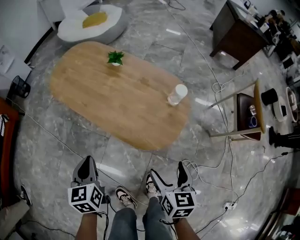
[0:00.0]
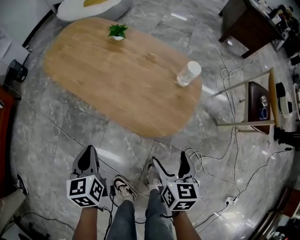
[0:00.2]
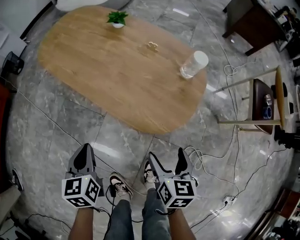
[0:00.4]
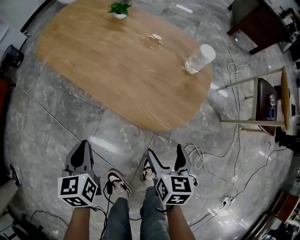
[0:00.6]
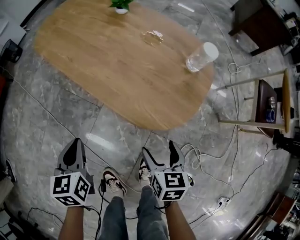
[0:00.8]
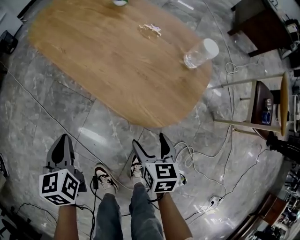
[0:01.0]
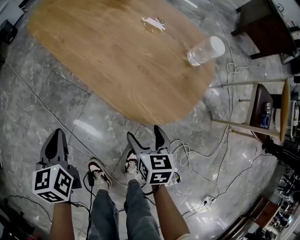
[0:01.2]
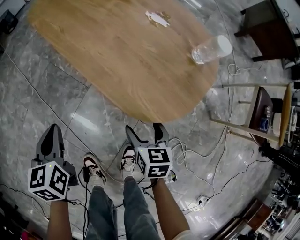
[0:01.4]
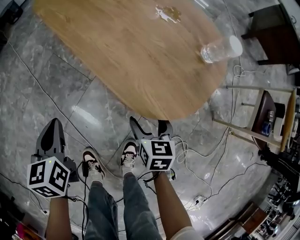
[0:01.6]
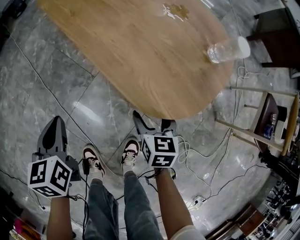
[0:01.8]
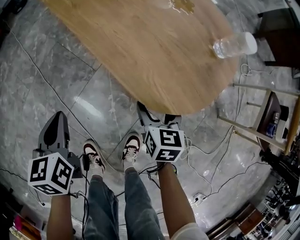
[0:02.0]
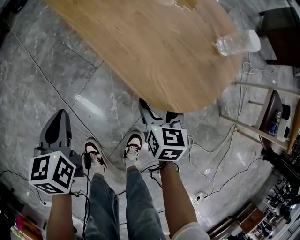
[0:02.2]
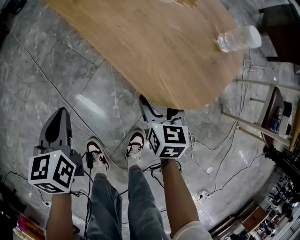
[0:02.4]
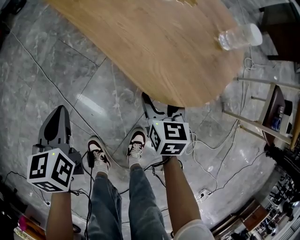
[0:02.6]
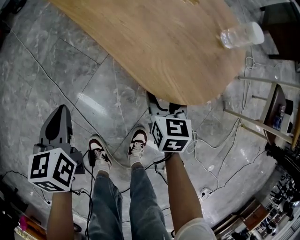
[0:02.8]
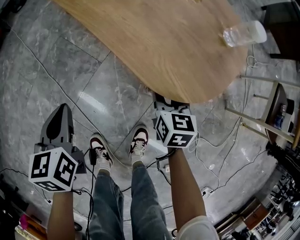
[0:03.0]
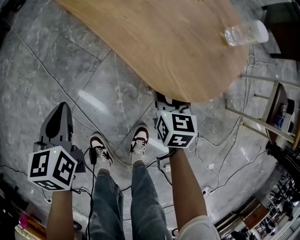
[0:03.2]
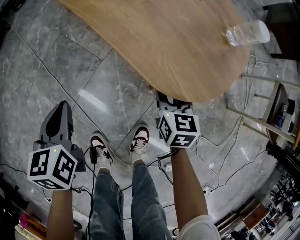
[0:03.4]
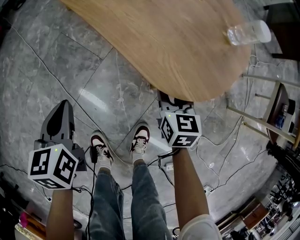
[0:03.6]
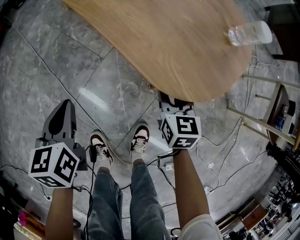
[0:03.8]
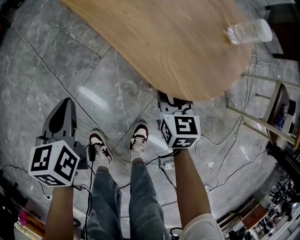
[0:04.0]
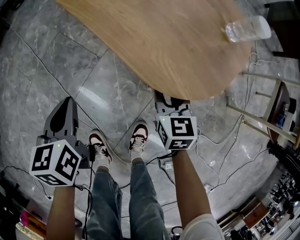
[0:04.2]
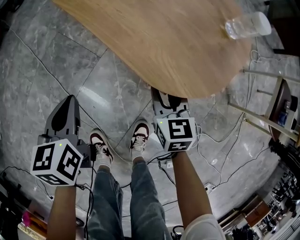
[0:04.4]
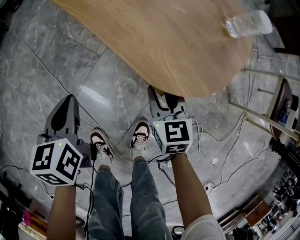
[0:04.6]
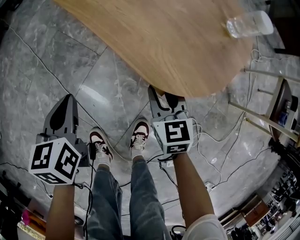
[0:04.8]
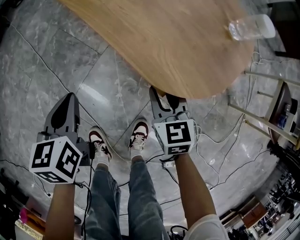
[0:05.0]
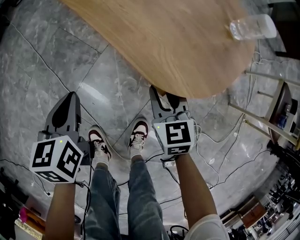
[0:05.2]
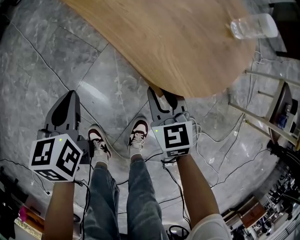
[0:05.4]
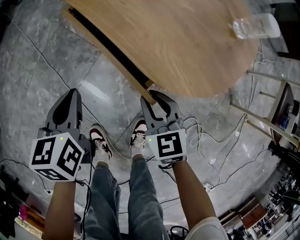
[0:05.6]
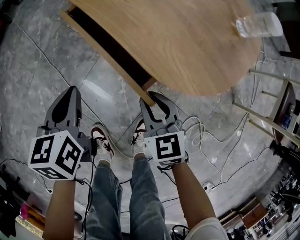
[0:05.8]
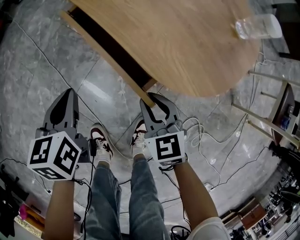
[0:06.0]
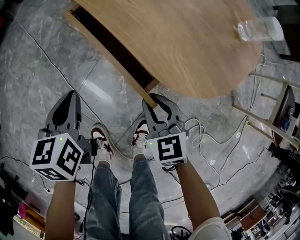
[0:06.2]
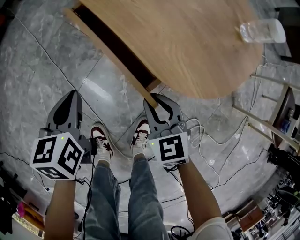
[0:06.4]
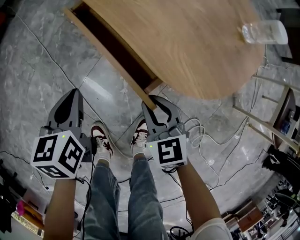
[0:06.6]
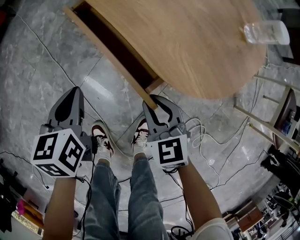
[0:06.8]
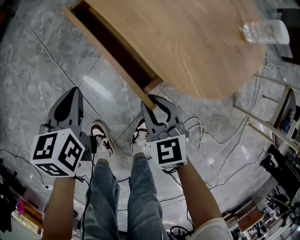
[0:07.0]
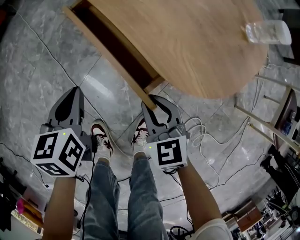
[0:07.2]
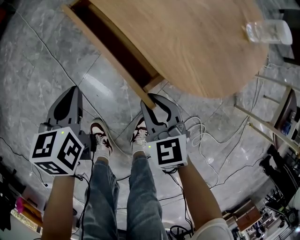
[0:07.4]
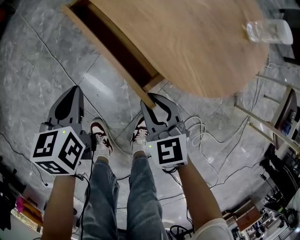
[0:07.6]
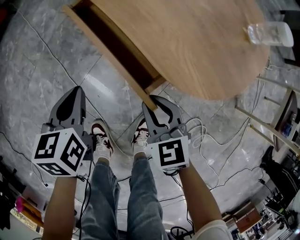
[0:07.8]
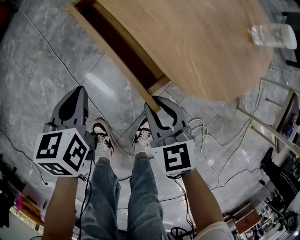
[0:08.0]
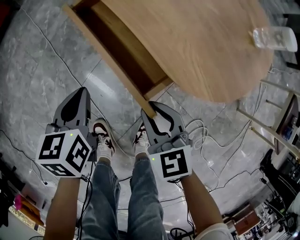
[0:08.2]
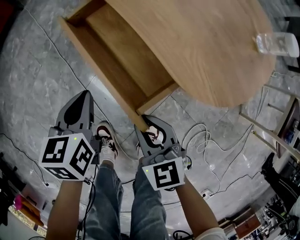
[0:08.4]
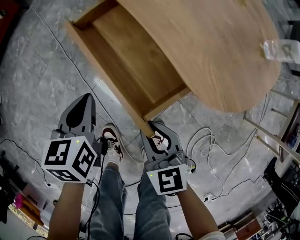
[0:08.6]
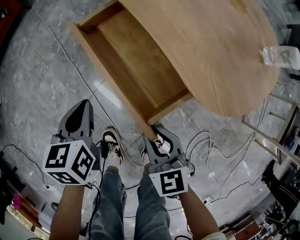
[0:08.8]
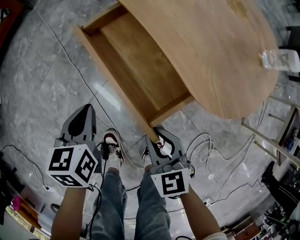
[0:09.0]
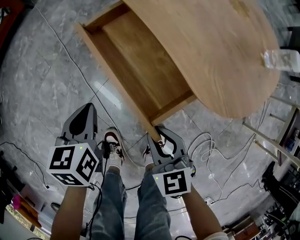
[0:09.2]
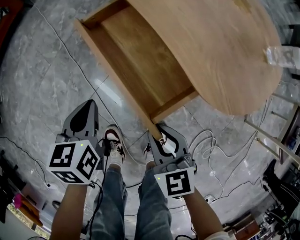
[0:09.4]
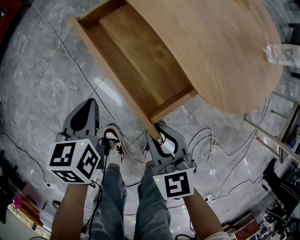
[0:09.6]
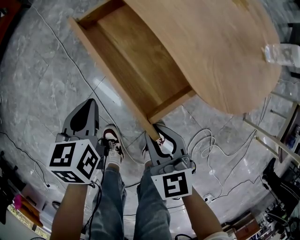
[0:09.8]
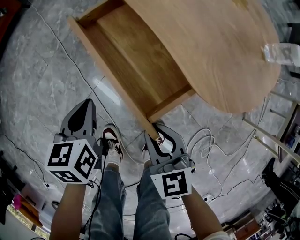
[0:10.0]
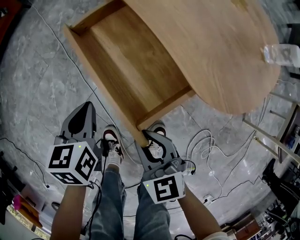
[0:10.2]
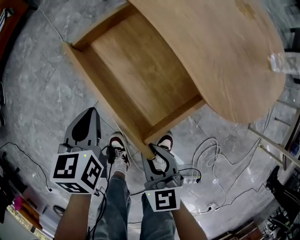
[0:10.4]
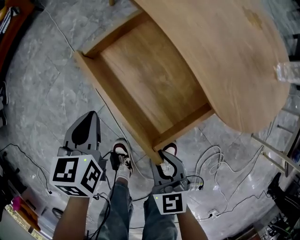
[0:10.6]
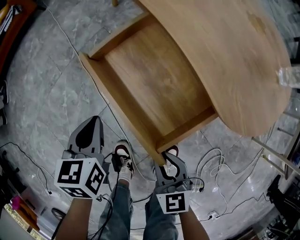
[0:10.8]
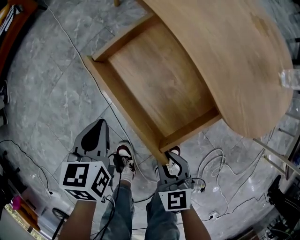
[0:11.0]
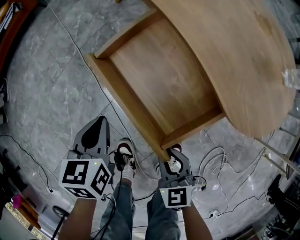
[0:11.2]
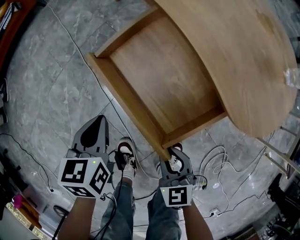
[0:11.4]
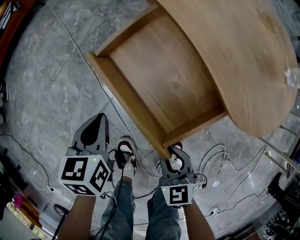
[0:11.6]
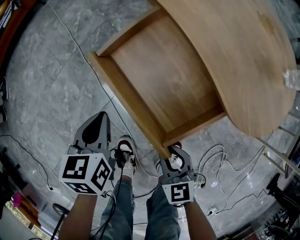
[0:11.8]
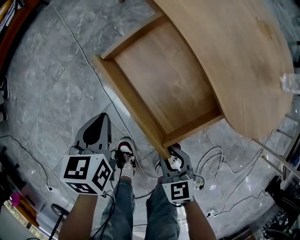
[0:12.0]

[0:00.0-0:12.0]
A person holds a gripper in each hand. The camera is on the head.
0:00.0 to 0:01.6: The left gripper is displaced downward by some 15 cm. Meanwhile the right gripper shifts approximately 25 cm downward, and rotates approximately 20 degrees.
0:01.6 to 0:03.0: The right gripper closes its fingers.
0:03.0 to 0:04.4: The grippers stay close to where they were, moving slightly.
0:04.4 to 0:06.0: The right gripper moves to the left, approximately 5 cm.
0:06.0 to 0:07.6: The grippers move only a little.
0:07.6 to 0:09.0: The two grippers go approximately 5 cm to the left.
0:09.0 to 0:10.4: The right gripper changes place by some 5 cm.
0:10.4 to 0:12.0: The right gripper heads downward, covering approximately 5 cm.

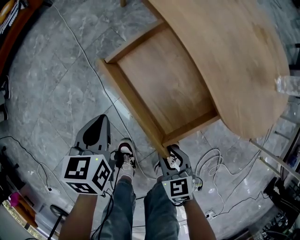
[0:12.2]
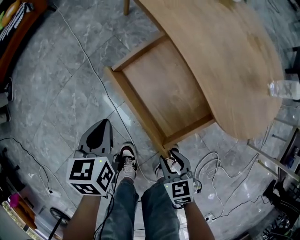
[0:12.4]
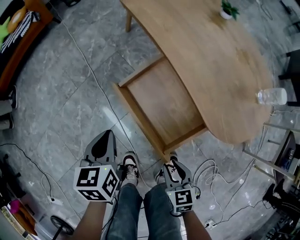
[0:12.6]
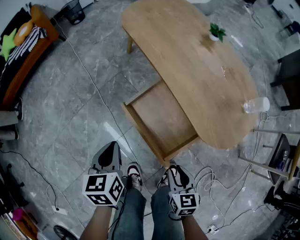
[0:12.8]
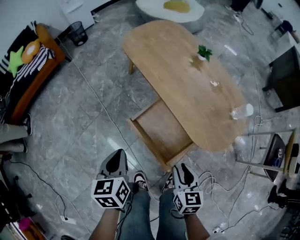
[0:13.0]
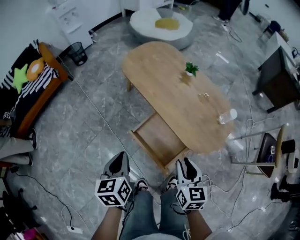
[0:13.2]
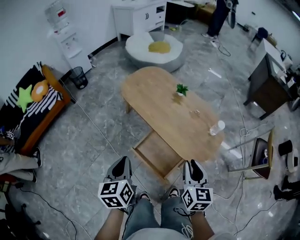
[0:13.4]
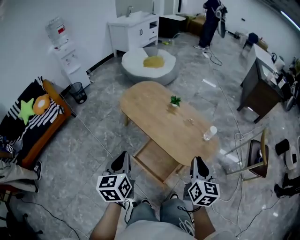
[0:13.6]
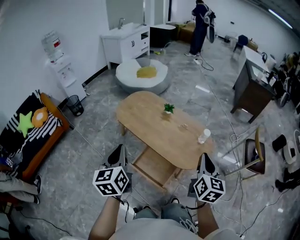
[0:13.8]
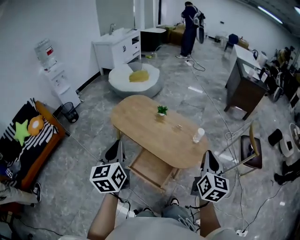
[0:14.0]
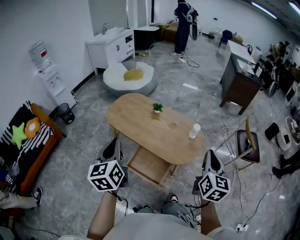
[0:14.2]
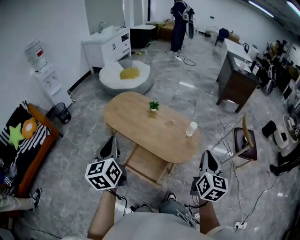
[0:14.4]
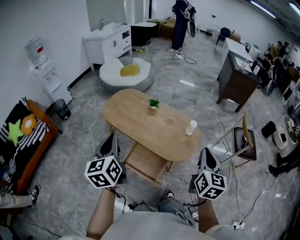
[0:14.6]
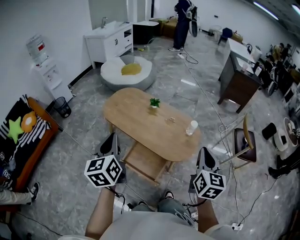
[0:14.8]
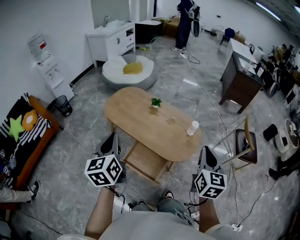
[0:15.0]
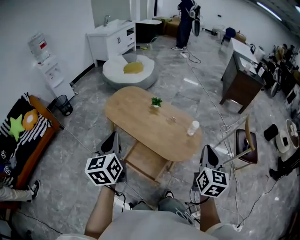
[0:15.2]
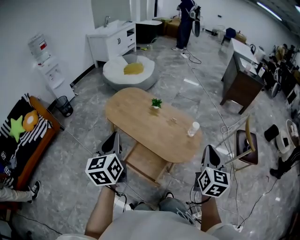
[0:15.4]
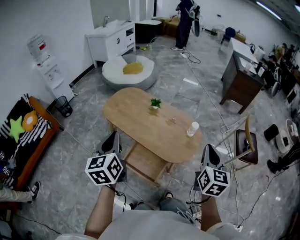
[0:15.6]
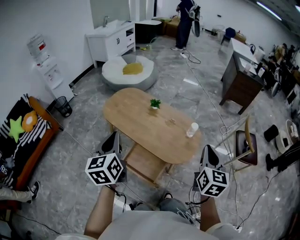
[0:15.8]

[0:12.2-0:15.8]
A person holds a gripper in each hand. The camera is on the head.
0:12.2 to 0:14.0: The two grippers go some 60 cm upward. The right gripper tilts its fingers some 40 degrees upward. Meanwhile the left gripper points its fingers about 40 degrees further upward.
0:14.0 to 0:15.8: The grippers make only small movements.

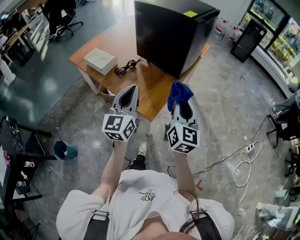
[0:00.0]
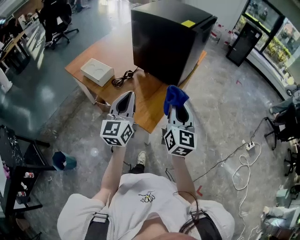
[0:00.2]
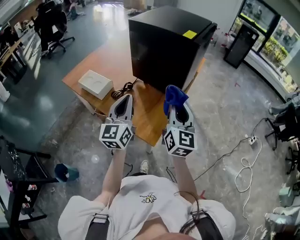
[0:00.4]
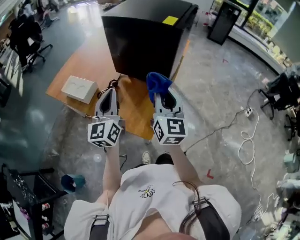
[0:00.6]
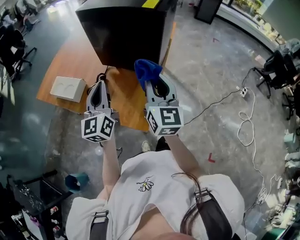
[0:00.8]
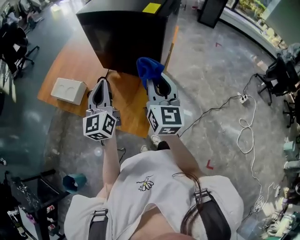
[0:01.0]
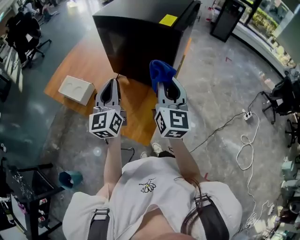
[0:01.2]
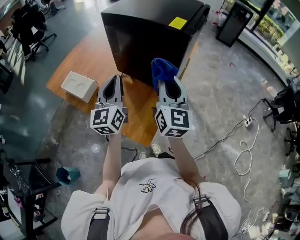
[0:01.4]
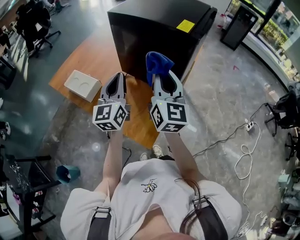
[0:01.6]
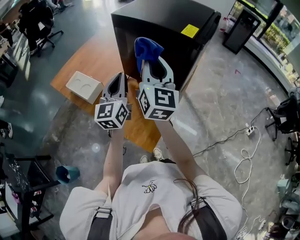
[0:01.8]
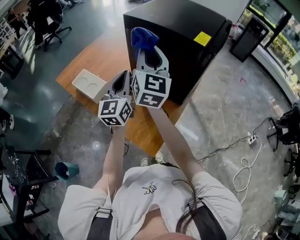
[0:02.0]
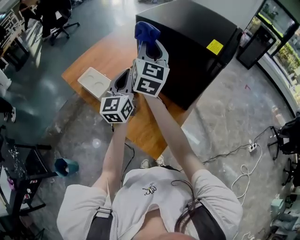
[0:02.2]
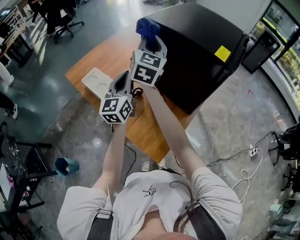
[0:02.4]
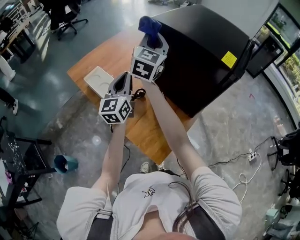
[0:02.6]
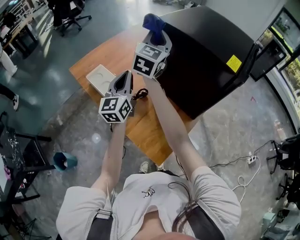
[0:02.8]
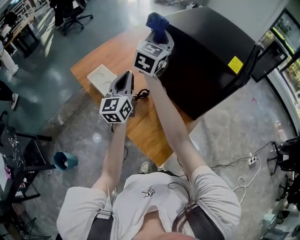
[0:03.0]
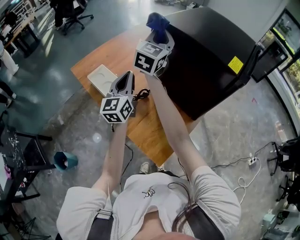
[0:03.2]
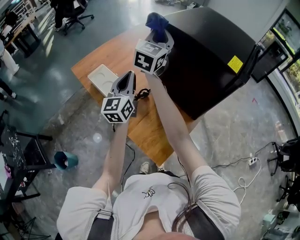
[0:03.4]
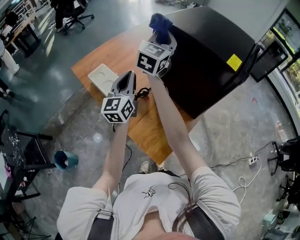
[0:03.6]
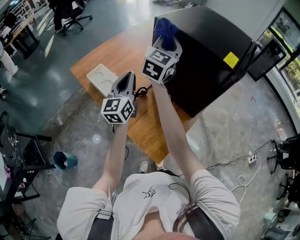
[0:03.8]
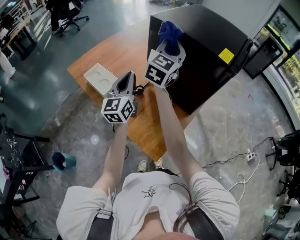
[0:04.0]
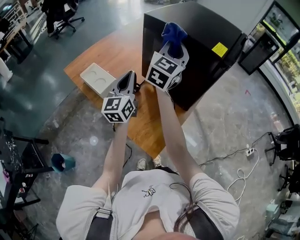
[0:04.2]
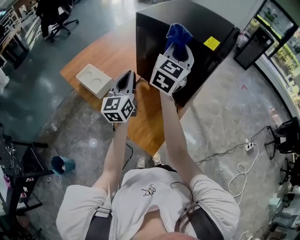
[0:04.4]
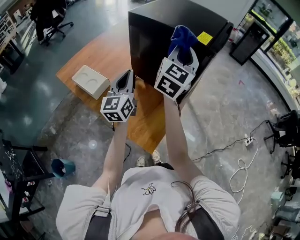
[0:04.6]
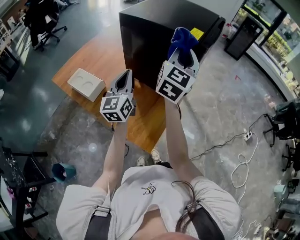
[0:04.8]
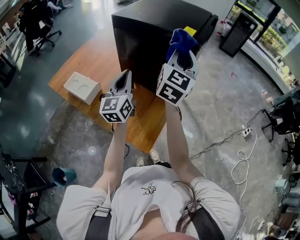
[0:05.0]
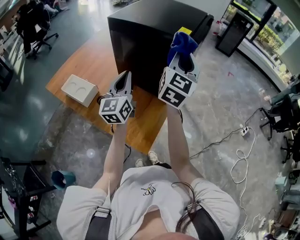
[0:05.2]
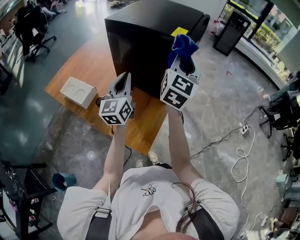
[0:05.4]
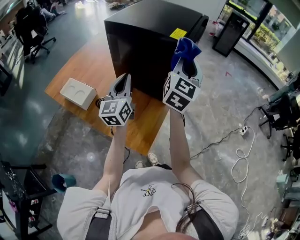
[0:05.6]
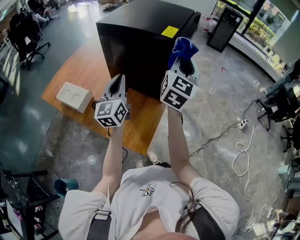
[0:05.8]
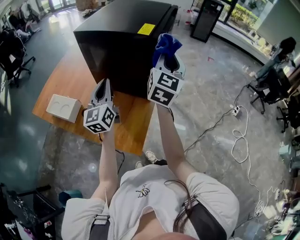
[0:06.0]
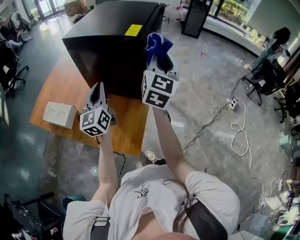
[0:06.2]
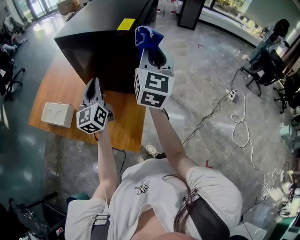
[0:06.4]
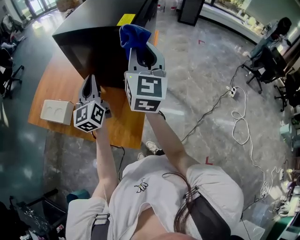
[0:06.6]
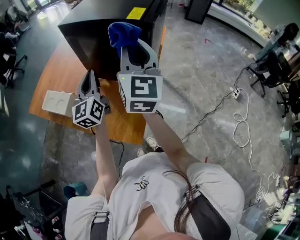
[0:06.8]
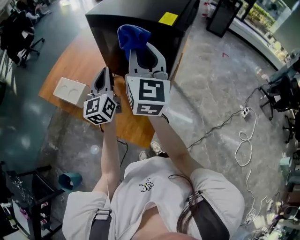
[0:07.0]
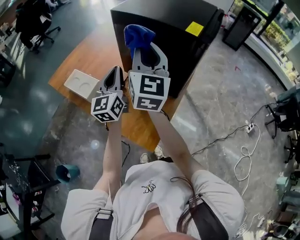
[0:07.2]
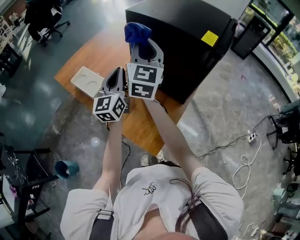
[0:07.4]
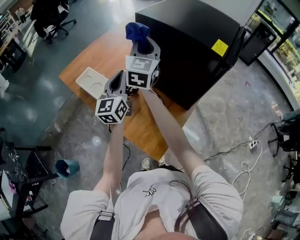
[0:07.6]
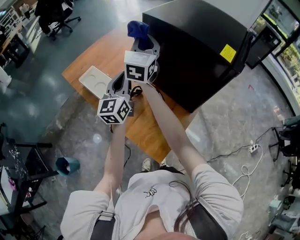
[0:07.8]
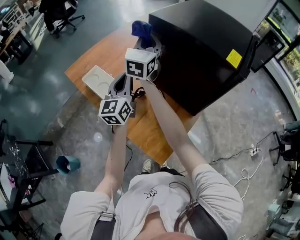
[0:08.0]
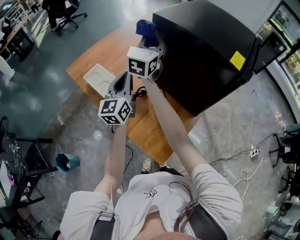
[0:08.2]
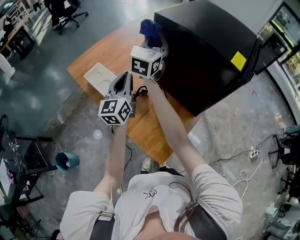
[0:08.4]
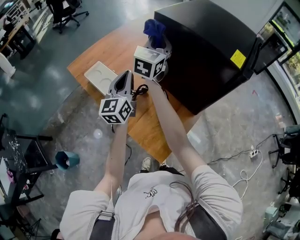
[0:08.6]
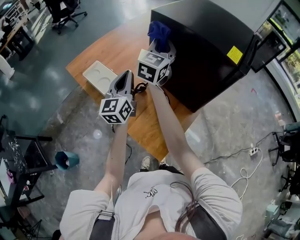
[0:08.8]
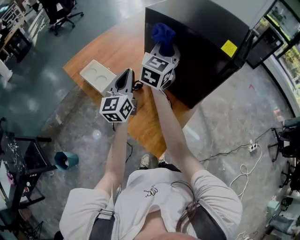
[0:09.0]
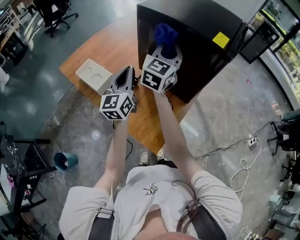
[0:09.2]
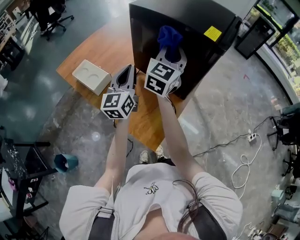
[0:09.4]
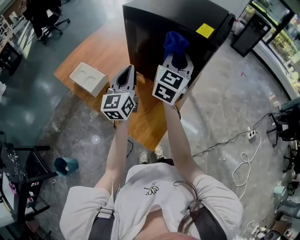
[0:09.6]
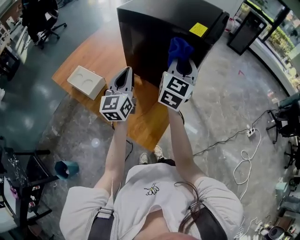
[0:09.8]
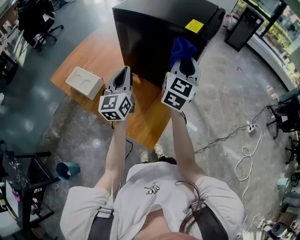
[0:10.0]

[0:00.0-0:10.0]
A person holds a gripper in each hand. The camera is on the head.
0:00.0 to 0:01.4: The two grippers go about 20 cm forward.
0:01.4 to 0:02.8: The left gripper shifts approximately 15 cm to the left and forward, while the right gripper shifts approximately 35 cm forward and to the left.
0:02.8 to 0:04.2: The right gripper heads to the right and backward, covering about 15 cm; the left gripper travels to the right by about 5 cm.
0:04.2 to 0:05.8: The right gripper goes roughly 20 cm to the right, while the left gripper moves to the right, roughly 10 cm.
0:05.8 to 0:07.2: The right gripper shifts some 20 cm to the left, and turns by about 30 degrees. Meanwhile the left gripper shifts approximately 5 cm to the left.
0:07.2 to 0:08.6: The right gripper shifts some 20 cm forward and to the left, while the left gripper is displaced to the left by approximately 10 cm.
0:08.6 to 0:10.0: The left gripper shifts some 10 cm to the right. Meanwhile the right gripper goes approximately 30 cm to the right and backward.
